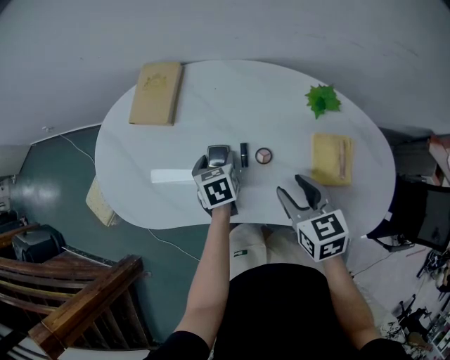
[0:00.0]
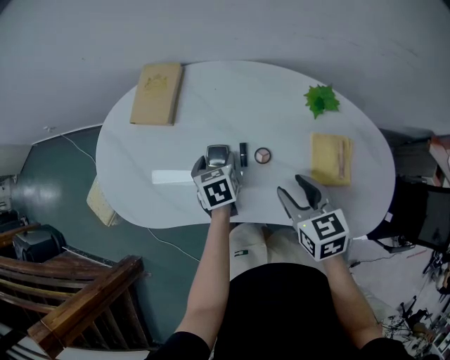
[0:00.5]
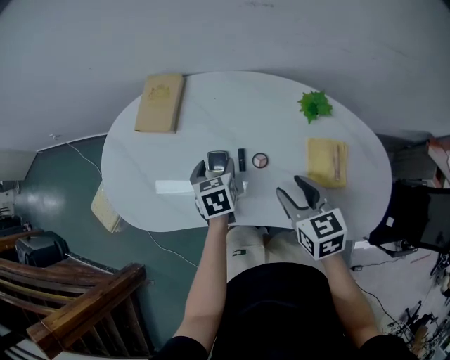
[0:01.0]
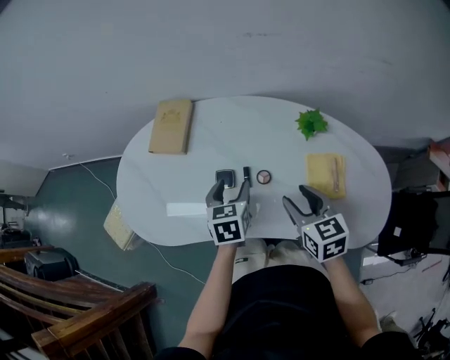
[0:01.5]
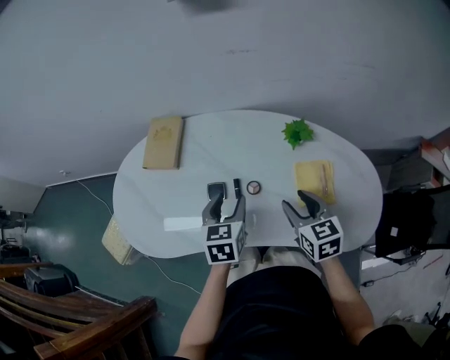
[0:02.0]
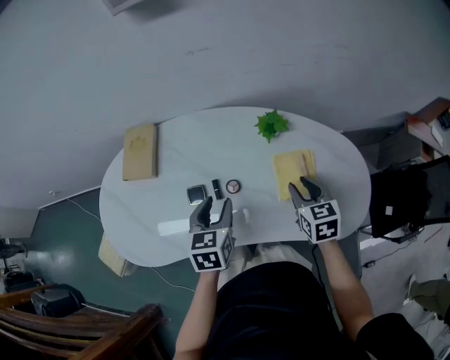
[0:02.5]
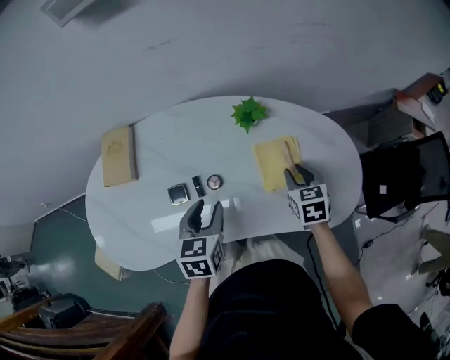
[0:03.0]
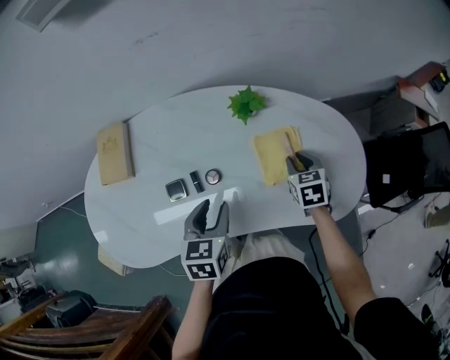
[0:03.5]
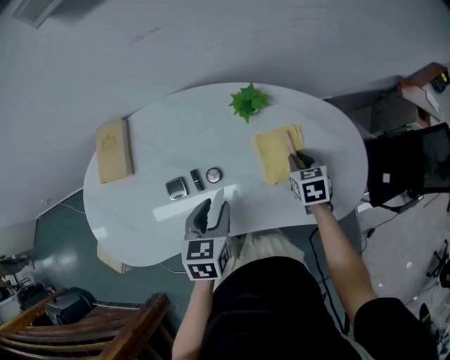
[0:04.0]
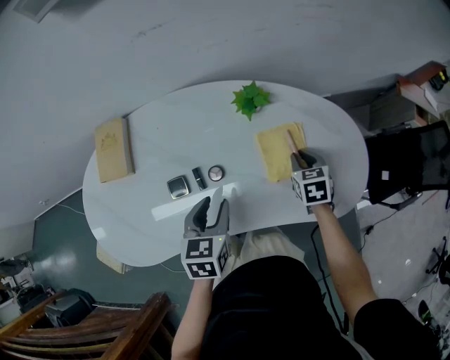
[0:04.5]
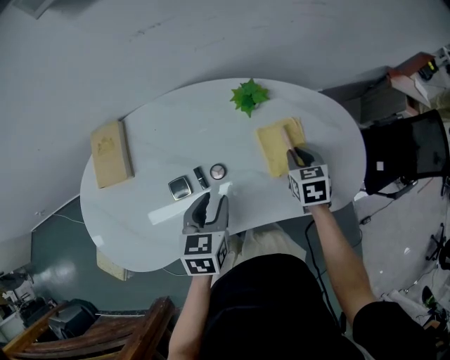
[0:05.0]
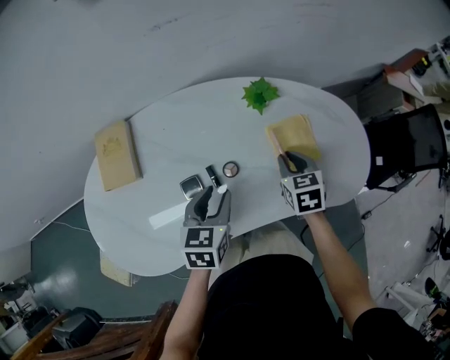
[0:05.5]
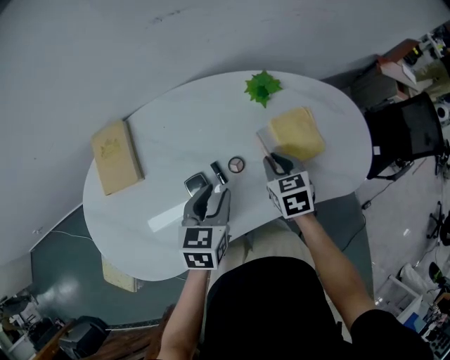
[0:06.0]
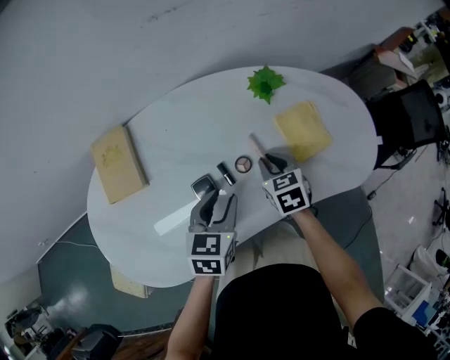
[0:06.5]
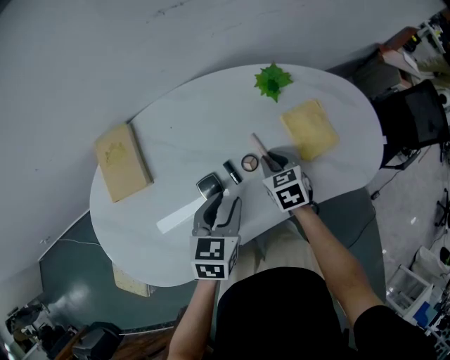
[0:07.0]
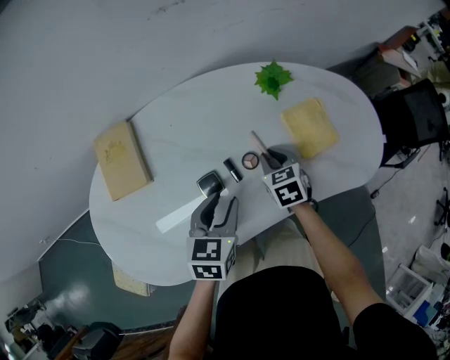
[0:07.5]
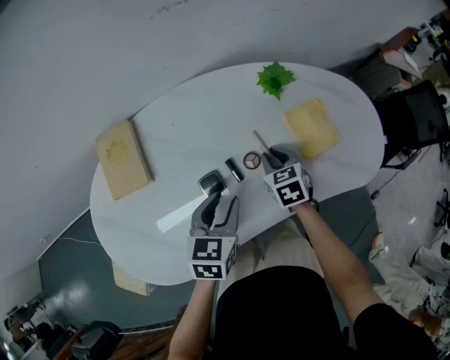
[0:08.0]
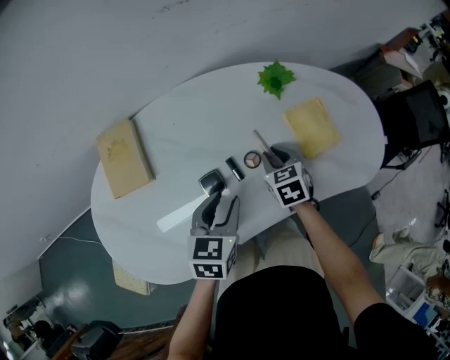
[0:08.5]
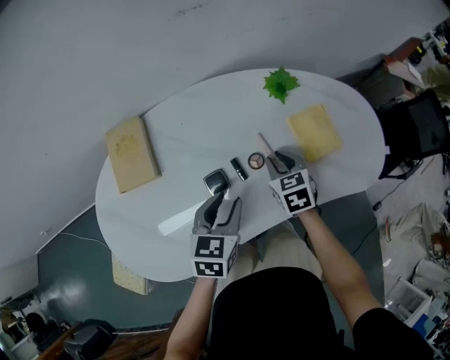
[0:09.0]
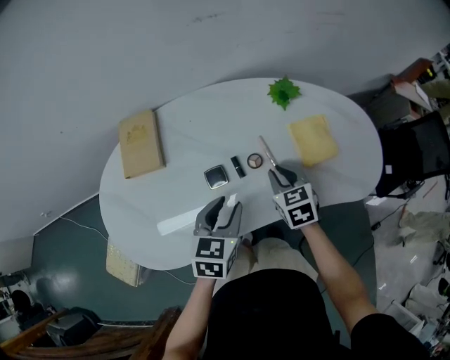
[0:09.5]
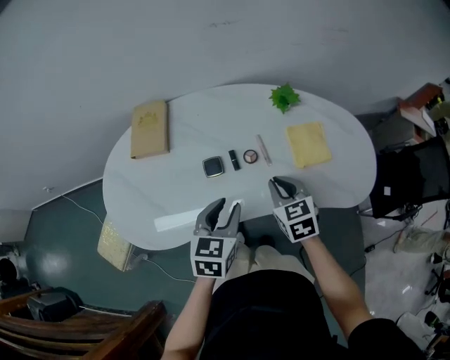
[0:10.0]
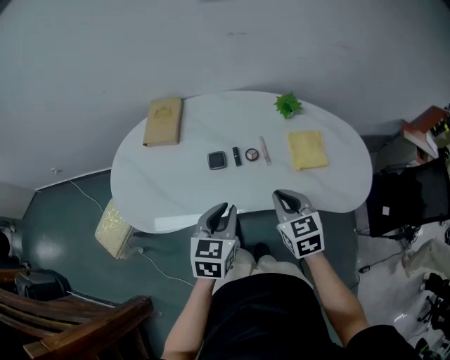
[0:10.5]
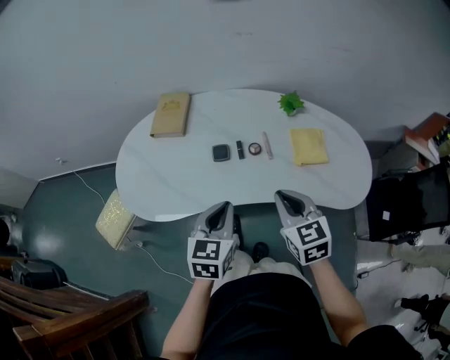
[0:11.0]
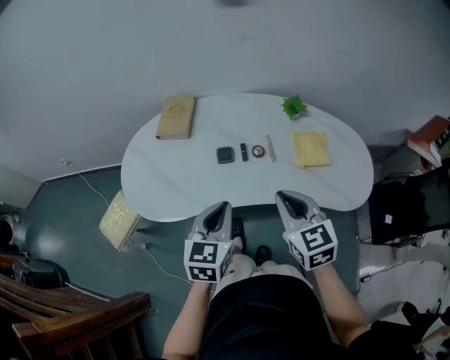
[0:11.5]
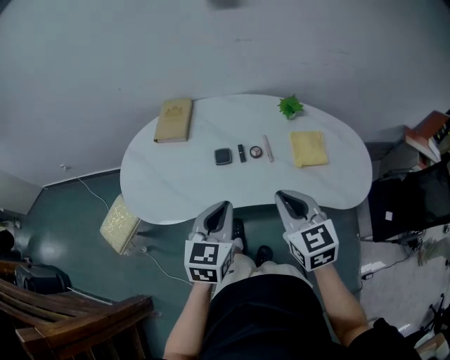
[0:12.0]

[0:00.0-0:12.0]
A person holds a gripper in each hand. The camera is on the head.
0:00.0 to 0:02.0: The left gripper shifts about 15 cm upward, to the right and backward, and changes its angle by approximately 20 degrees; the right gripper goes approximately 5 cm to the right.
0:02.0 to 0:04.0: The left gripper travels to the right by roughly 10 cm. Meanwhile the right gripper shifts approximately 20 cm to the right and downward, rotates roughly 30 degrees, and closes its fingers.
0:04.0 to 0:06.0: The right gripper is displaced to the left by some 15 cm. Meanwhile the left gripper heads to the left, covering some 10 cm.
0:06.0 to 0:08.0: The right gripper travels downward by some 5 cm.
0:08.0 to 0:10.0: The right gripper travels upward and backward by some 15 cm. The left gripper moves backward and upward, roughly 10 cm.
0:10.0 to 0:12.0: The right gripper heads upward and backward, covering about 20 cm. The left gripper heads backward and upward, covering some 10 cm, and closes up.

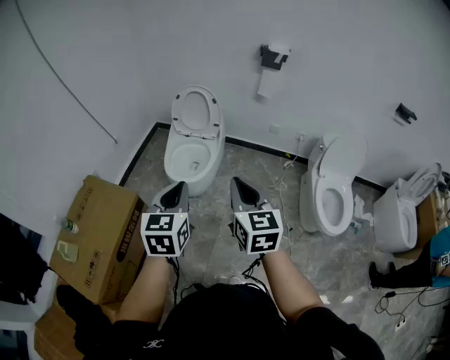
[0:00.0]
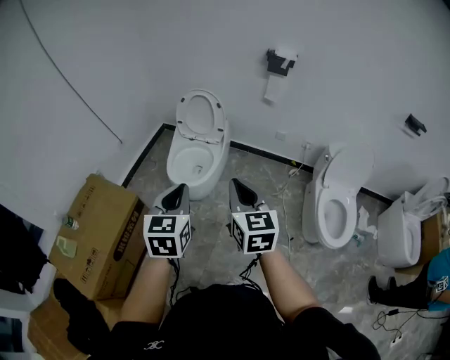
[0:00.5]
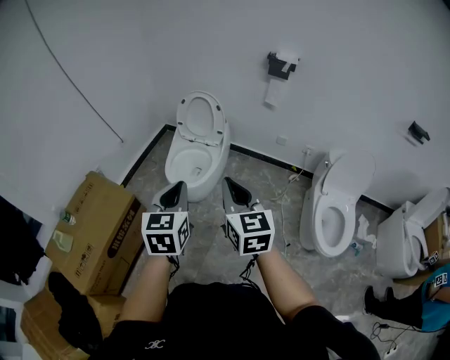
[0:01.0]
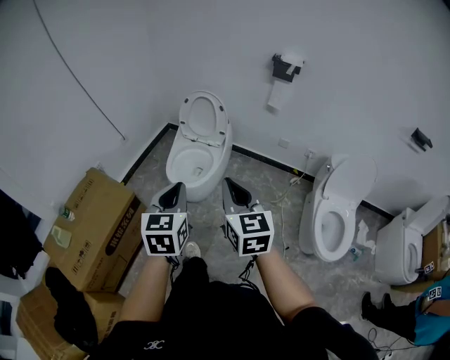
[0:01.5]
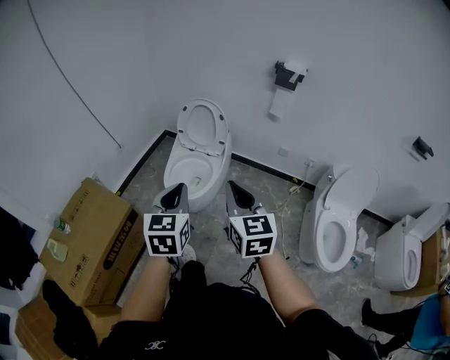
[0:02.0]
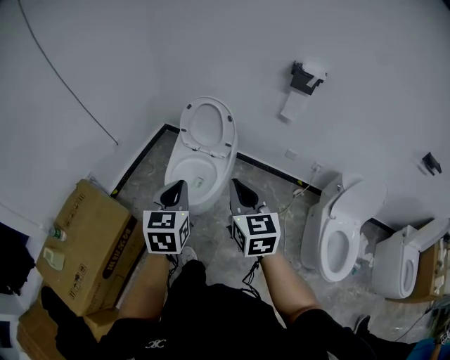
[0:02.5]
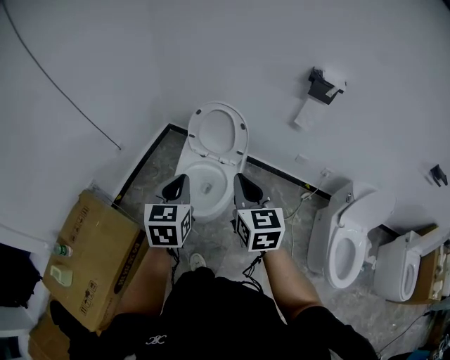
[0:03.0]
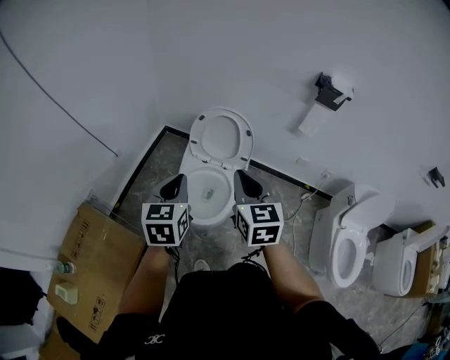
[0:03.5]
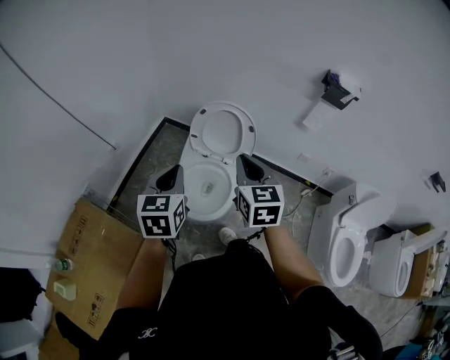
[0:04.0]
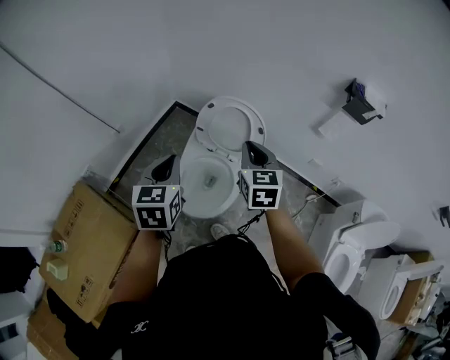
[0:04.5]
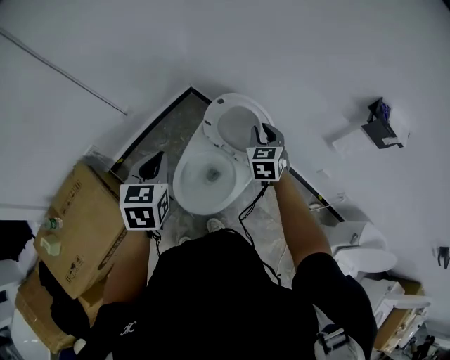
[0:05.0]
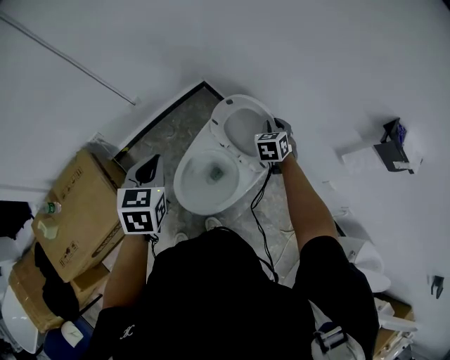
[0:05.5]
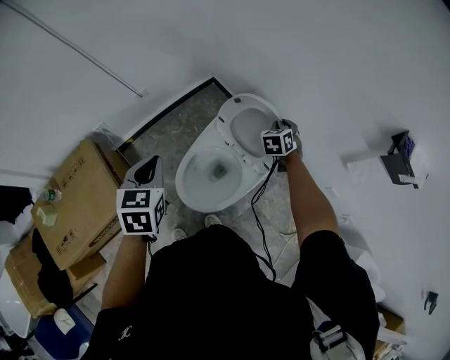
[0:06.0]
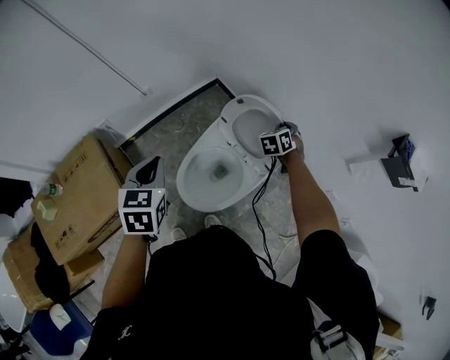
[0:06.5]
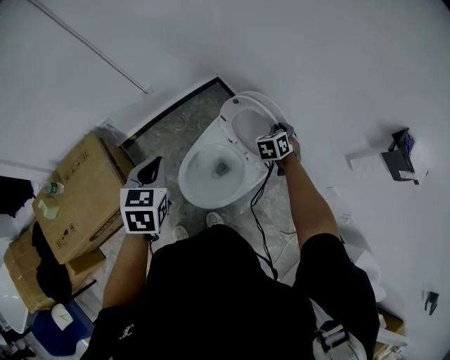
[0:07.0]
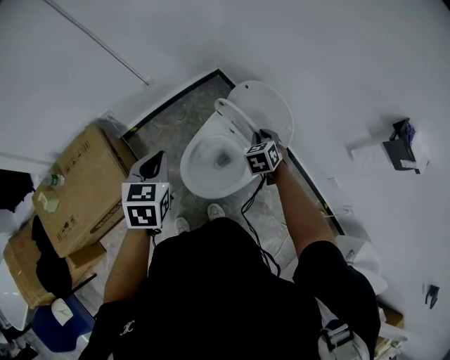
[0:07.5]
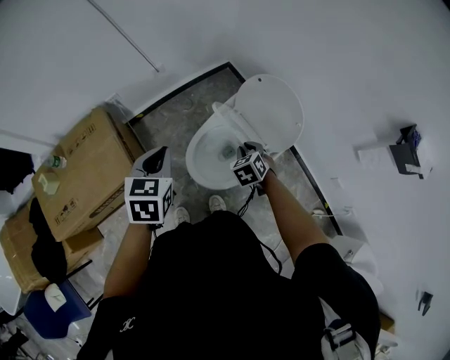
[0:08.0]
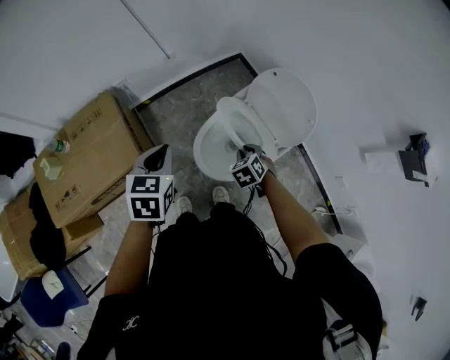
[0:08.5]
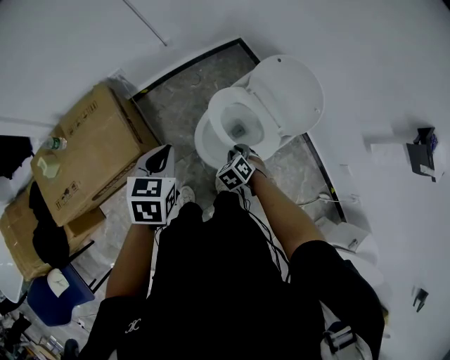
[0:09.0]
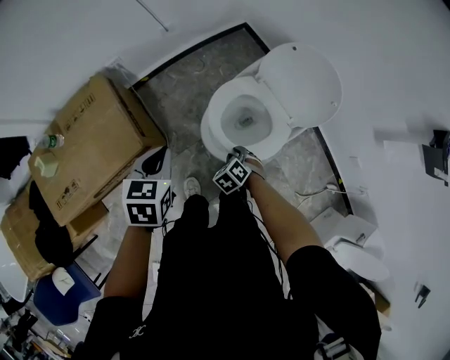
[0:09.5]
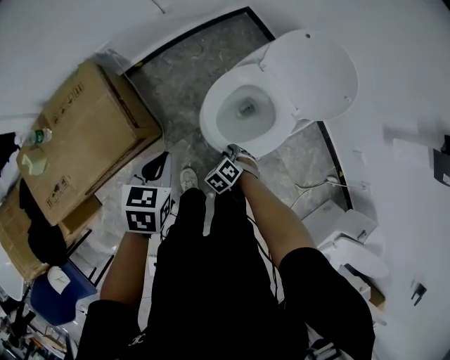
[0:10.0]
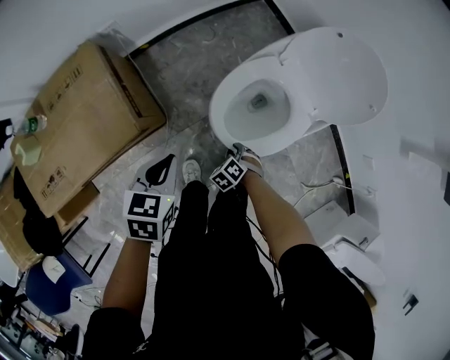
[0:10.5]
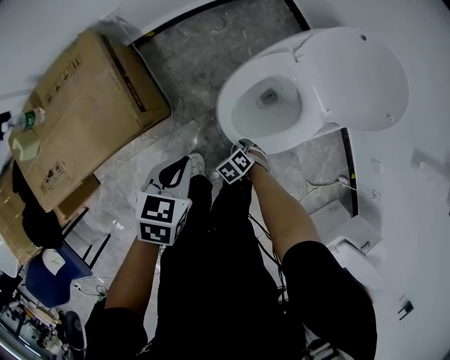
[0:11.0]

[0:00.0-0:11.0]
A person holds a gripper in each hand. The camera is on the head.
0:00.0 to 0:02.0: The right gripper goes roughly 10 cm forward. The left gripper travels forward and to the right by roughly 10 cm.
0:02.0 to 0:03.5: Both grippers travel together forward and to the left, some 35 cm.
0:03.5 to 0:05.5: The left gripper moves forward and downward, about 15 cm, and changes its angle by about 30 degrees; the right gripper moves forward and downward, roughly 50 cm, turns by some 40 degrees, and opens.
0:05.5 to 0:07.5: The left gripper is displaced backward by approximately 5 cm, while the right gripper goes roughly 15 cm backward and to the left.
0:07.5 to 0:09.0: The right gripper travels to the left, backward and downward by about 25 cm, and turns by roughly 30 degrees. Meanwhile the left gripper heads backward, to the left and downward, covering some 10 cm.
0:09.0 to 0:11.0: The grippers both shift downward by about 25 cm. The right gripper rotates about 20 degrees.

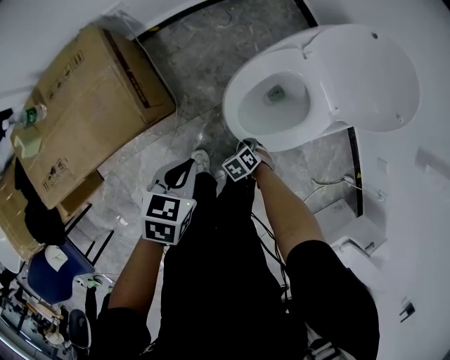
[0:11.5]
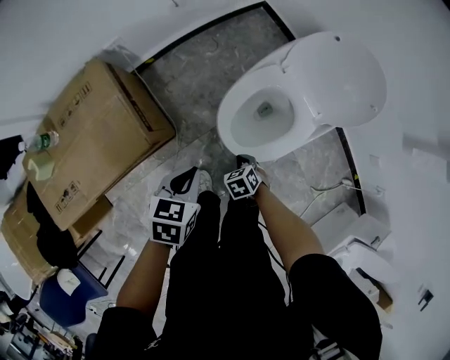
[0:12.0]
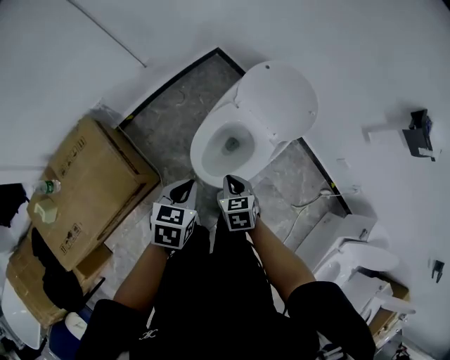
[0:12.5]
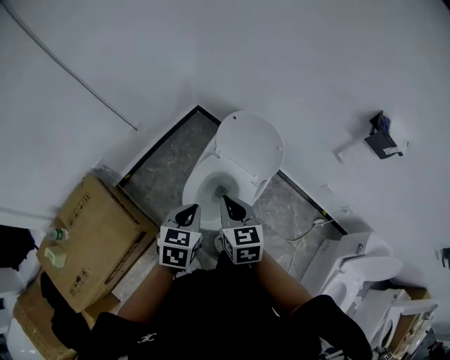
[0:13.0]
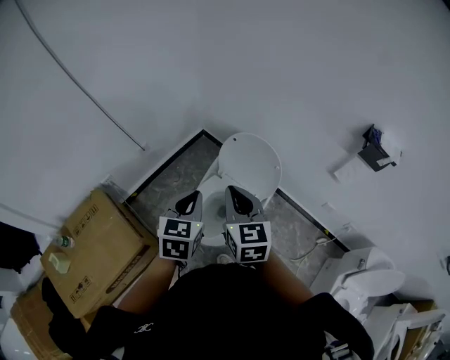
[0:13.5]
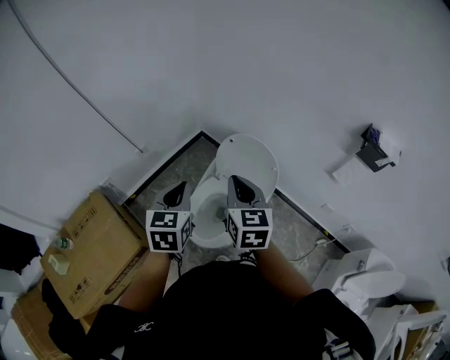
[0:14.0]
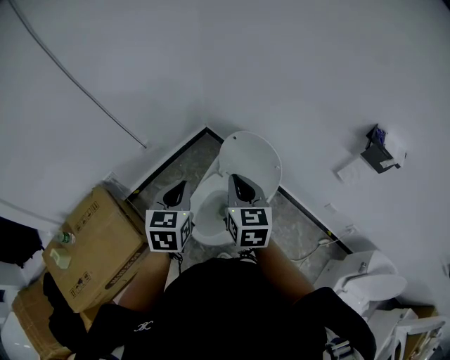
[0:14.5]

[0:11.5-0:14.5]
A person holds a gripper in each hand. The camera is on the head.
0:11.5 to 0:13.0: The left gripper moves upward, roughly 25 cm, and swivels about 30 degrees, while the right gripper is displaced upward by roughly 50 cm, and points its fingers approximately 60 degrees further upward.
0:13.0 to 0:14.5: The right gripper is displaced upward, forward and to the right by roughly 15 cm, while the left gripper moves upward and forward, roughly 15 cm.
